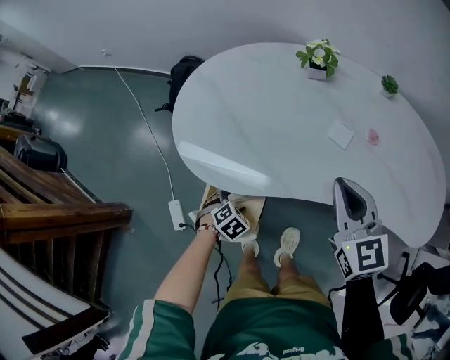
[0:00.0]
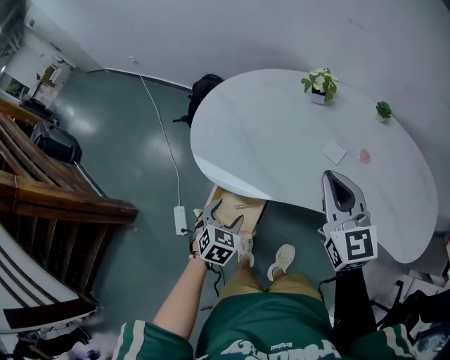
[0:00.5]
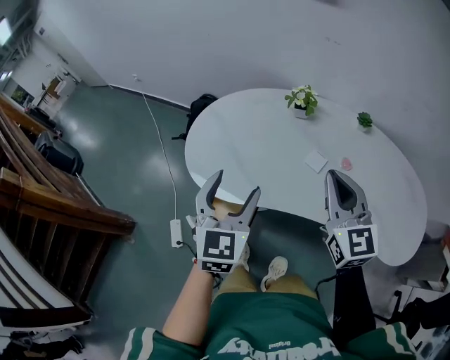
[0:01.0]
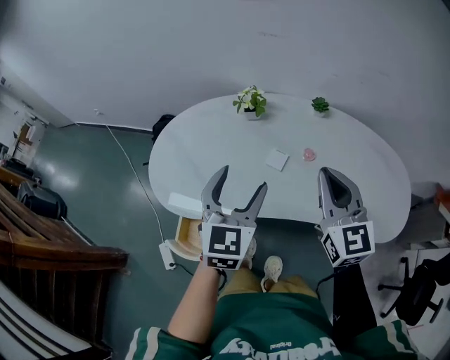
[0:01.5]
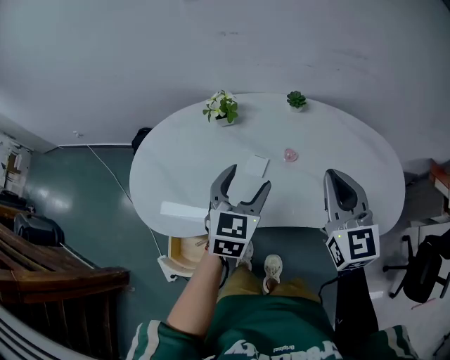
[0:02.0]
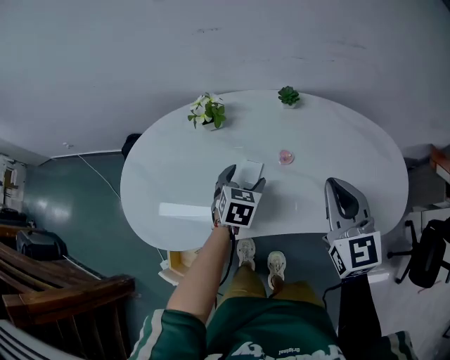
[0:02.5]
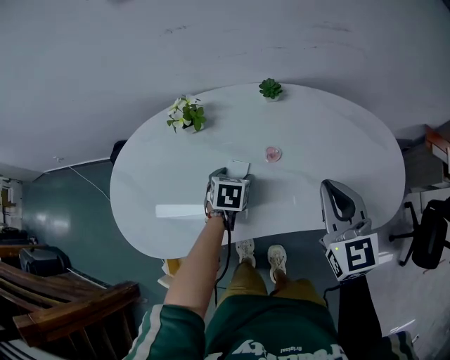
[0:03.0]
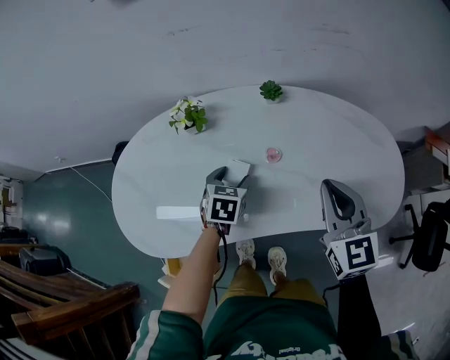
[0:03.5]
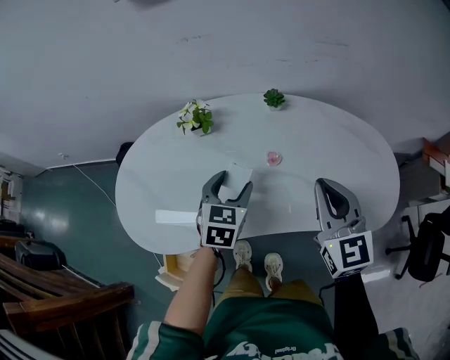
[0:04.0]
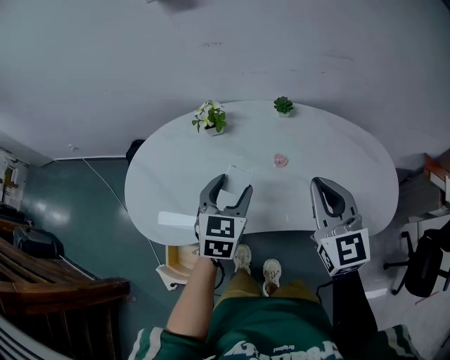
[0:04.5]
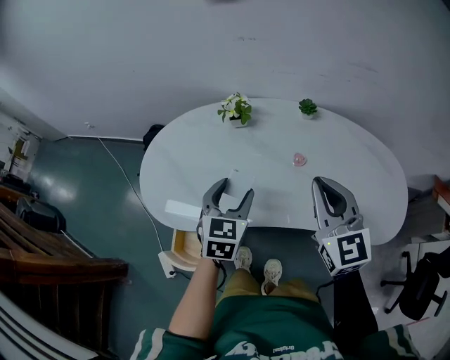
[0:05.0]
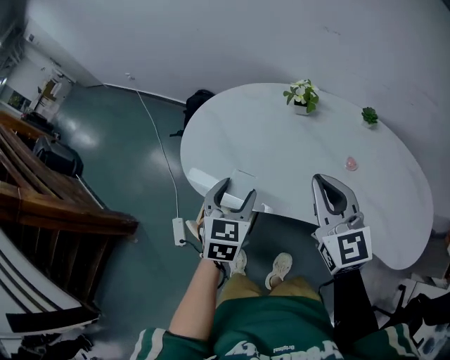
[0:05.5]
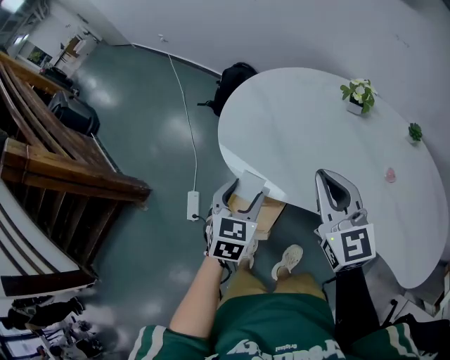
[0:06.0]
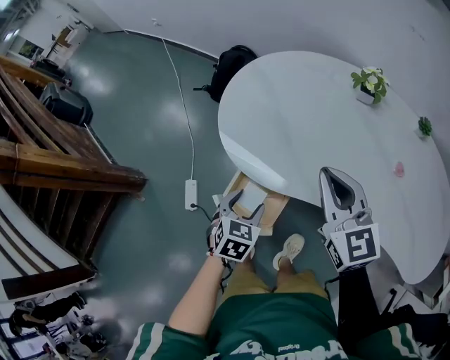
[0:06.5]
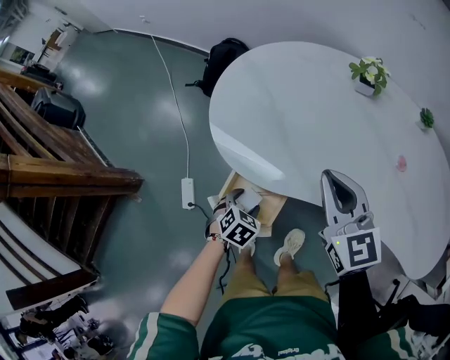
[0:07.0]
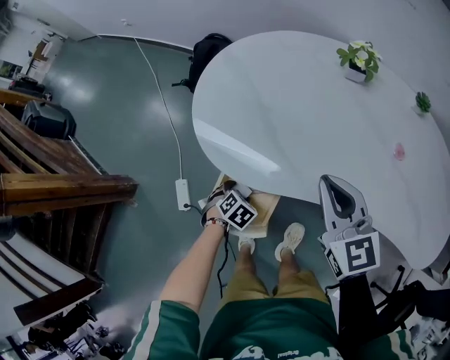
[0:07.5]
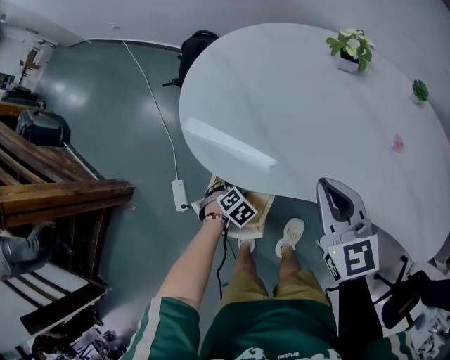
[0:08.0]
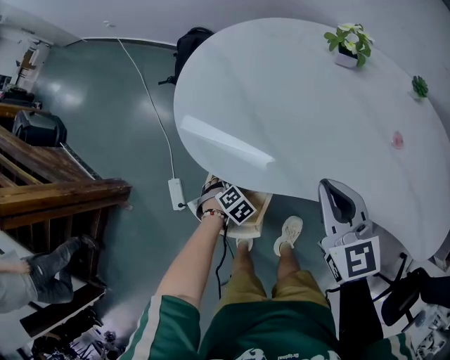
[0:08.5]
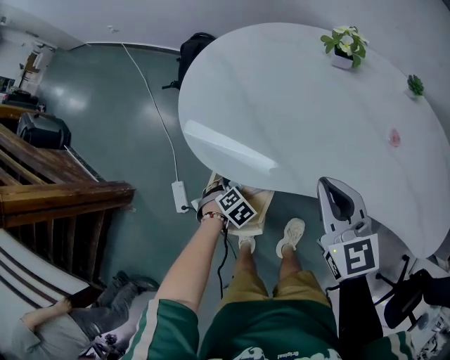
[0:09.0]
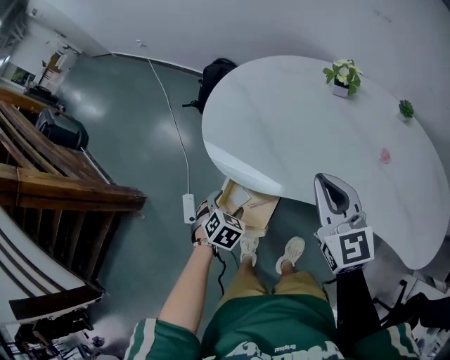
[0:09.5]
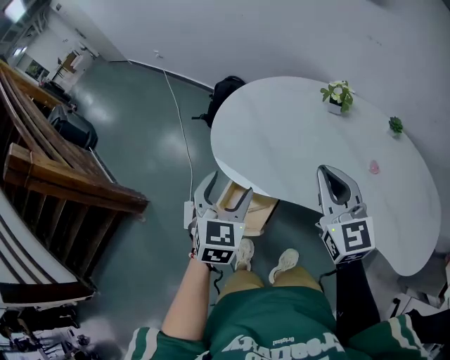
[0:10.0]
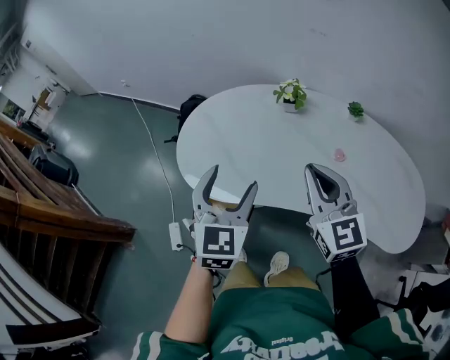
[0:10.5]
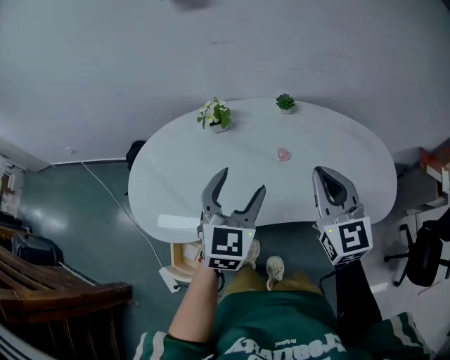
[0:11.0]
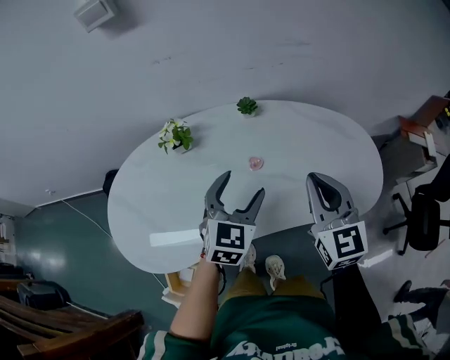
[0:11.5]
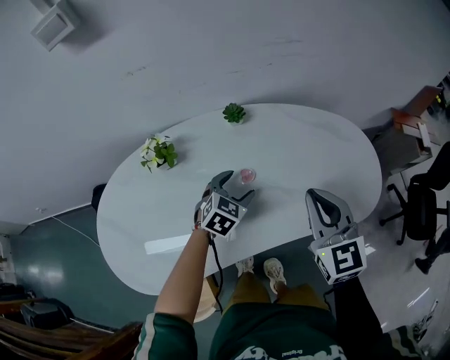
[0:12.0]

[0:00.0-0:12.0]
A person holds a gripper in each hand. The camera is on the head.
0:00.0 to 0:02.0: The left gripper moves upward, to the right and forward, roughly 50 cm, and tips its fingers upward by some 50 degrees; the right gripper shifts approximately 25 cm to the right and upward, and rotates approximately 20 degrees.
0:02.0 to 0:04.0: The left gripper goes some 10 cm downward and forward.
0:04.0 to 0:06.0: The left gripper moves roughly 40 cm, and turns by approximately 30 degrees, while the right gripper ends up some 35 cm from where it was, and swivels approximately 40 degrees.
0:06.0 to 0:08.0: The right gripper shifts some 10 cm downward, while the left gripper heads downward, covering roughly 30 cm, and angles its fingers downward, by about 40 degrees.
0:08.0 to 0:10.0: The left gripper is displaced upward by some 40 cm, and tilts its fingers approximately 50 degrees upward; the right gripper shifts some 15 cm upward.
0:10.0 to 0:12.0: The left gripper ends up some 50 cm from where it was, and rotates some 70 degrees. Meanwhile the right gripper moves about 35 cm, and turns by roughly 50 degrees.

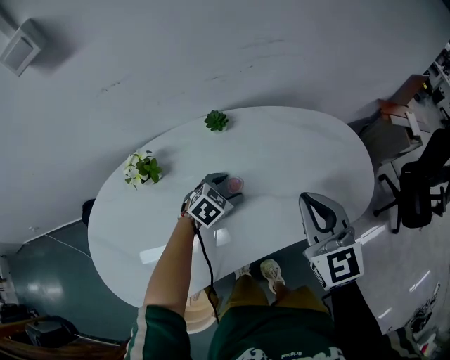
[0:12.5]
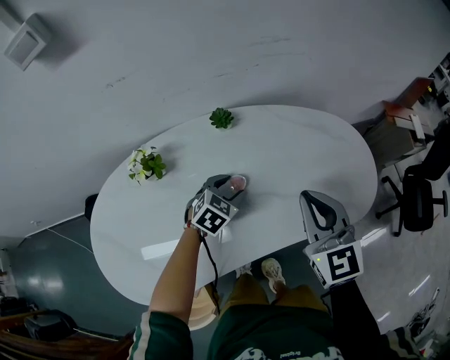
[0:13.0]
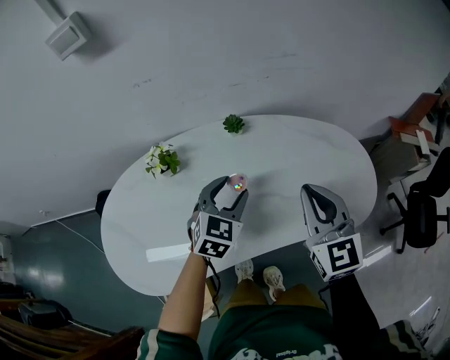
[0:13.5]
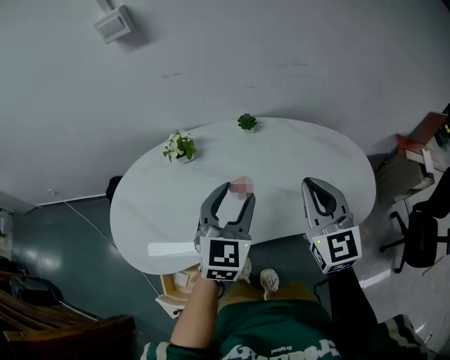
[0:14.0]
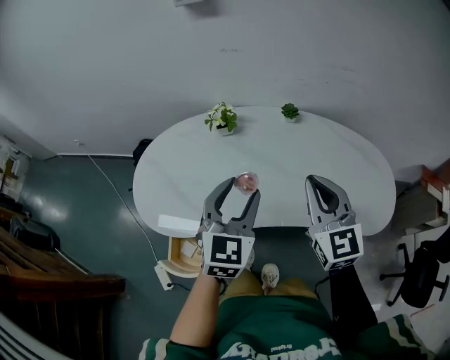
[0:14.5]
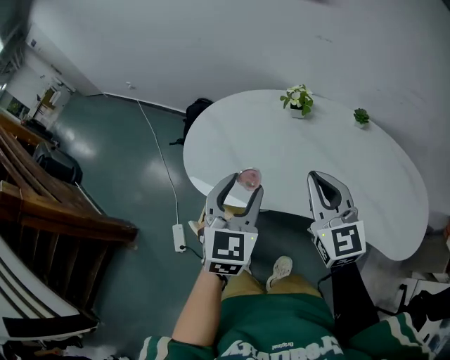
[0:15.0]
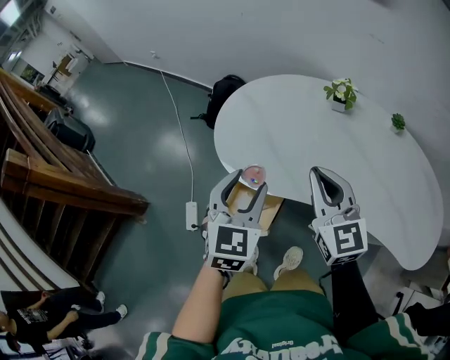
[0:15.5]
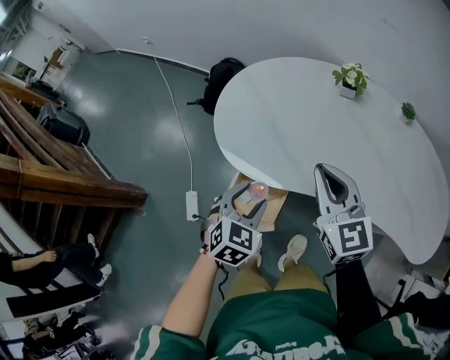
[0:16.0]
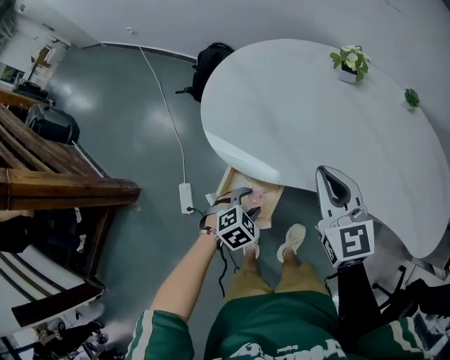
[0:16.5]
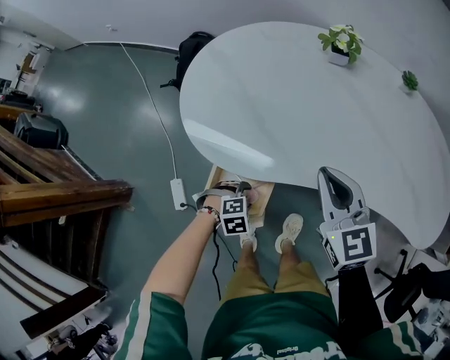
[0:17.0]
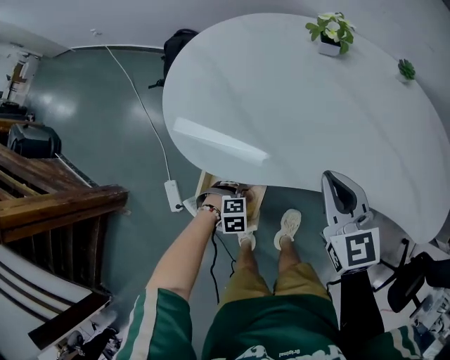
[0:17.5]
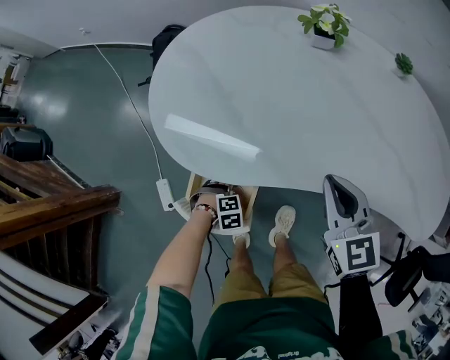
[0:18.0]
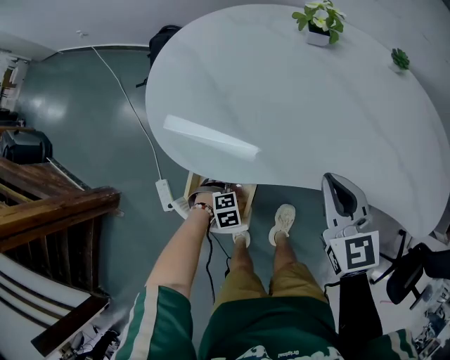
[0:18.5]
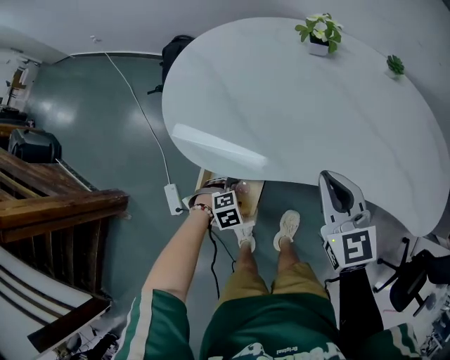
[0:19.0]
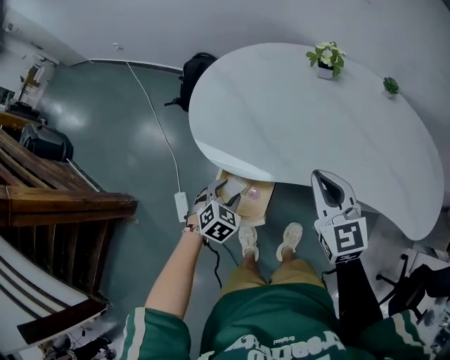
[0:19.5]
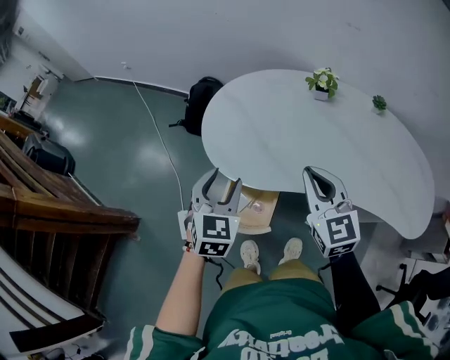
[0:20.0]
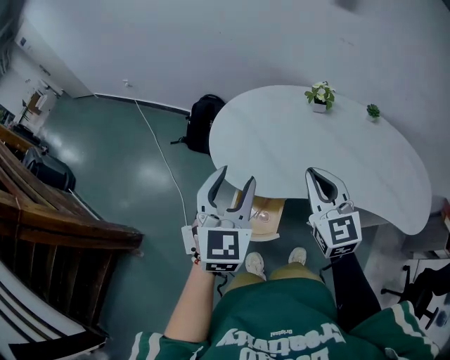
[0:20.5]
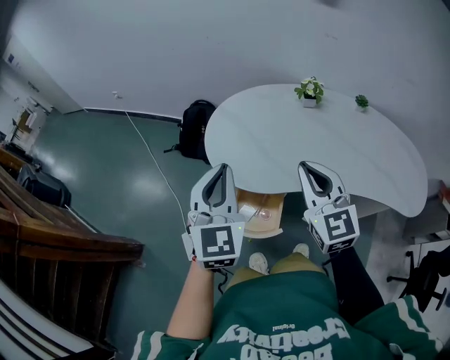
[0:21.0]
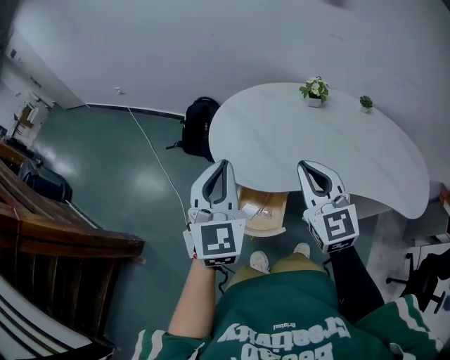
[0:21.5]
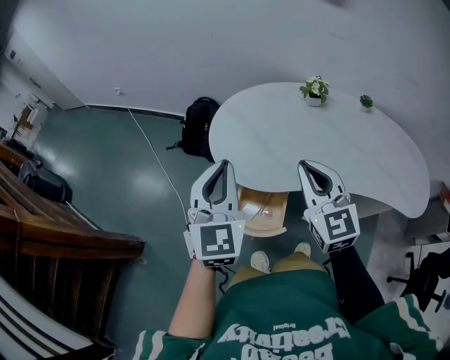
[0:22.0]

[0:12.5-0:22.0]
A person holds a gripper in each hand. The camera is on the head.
0:12.5 to 0:14.5: The right gripper shifts by some 15 cm, and changes its angle by some 20 degrees. Meanwhile the left gripper is displaced upward by approximately 30 cm, and points its fingers about 40 degrees further upward.
0:14.5 to 0:16.5: The right gripper moves roughly 30 cm, and changes its angle by approximately 30 degrees. Meanwhile the left gripper goes about 35 cm downward, and tips its fingers downward by some 50 degrees.
0:16.5 to 0:18.0: The right gripper shifts by about 10 cm; the left gripper travels downward by some 20 cm, and rotates about 40 degrees.
0:18.0 to 0:20.0: The left gripper is displaced upward by about 40 cm, and tips its fingers upward by roughly 60 degrees. Meanwhile the right gripper heads upward, covering roughly 15 cm.
0:20.0 to 0:22.0: The left gripper is displaced upward by about 15 cm, turns by roughly 20 degrees, and closes its fingers. Meanwhile the right gripper is displaced to the left and upward by some 10 cm.

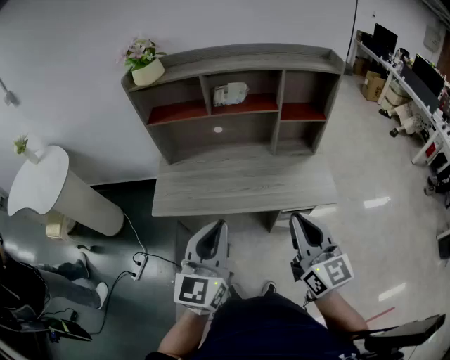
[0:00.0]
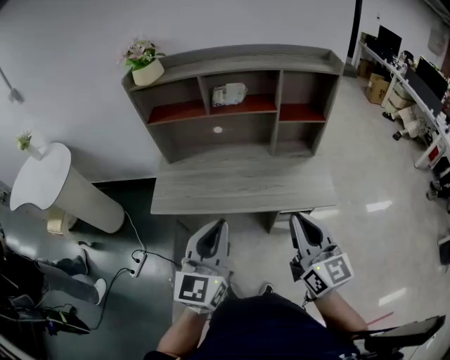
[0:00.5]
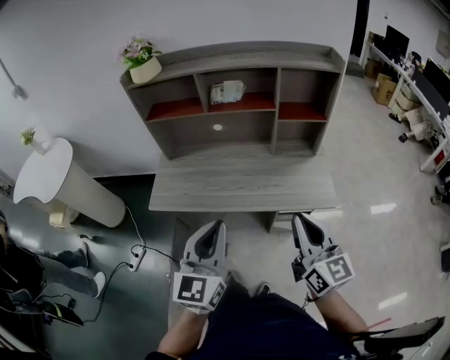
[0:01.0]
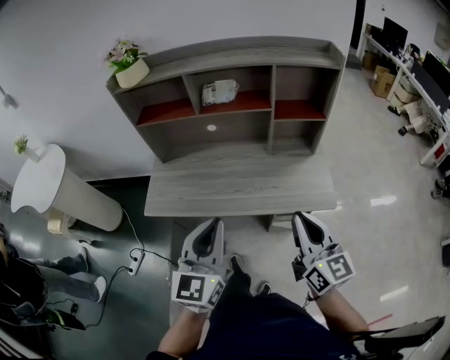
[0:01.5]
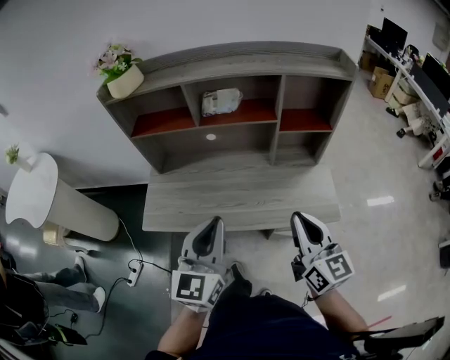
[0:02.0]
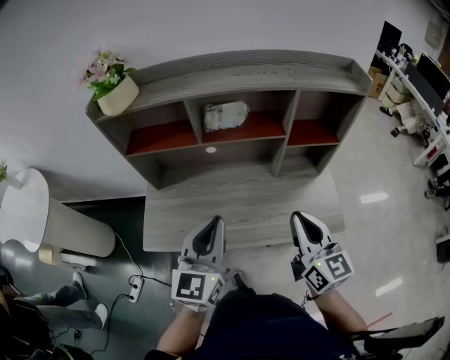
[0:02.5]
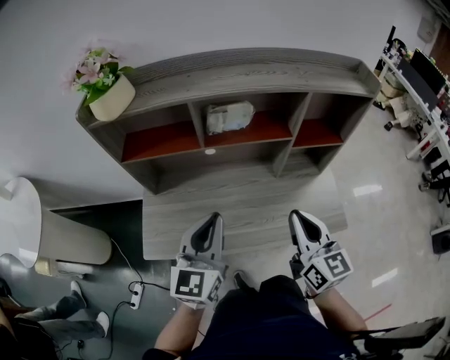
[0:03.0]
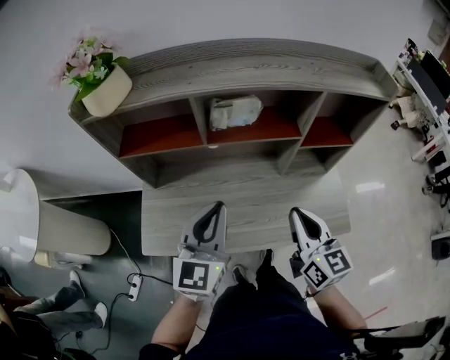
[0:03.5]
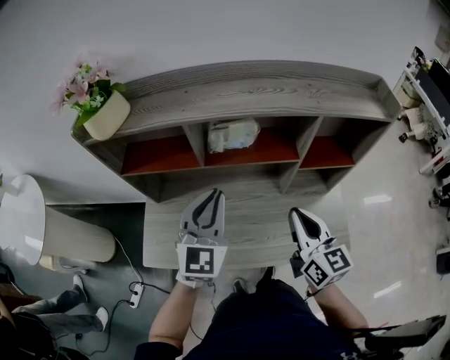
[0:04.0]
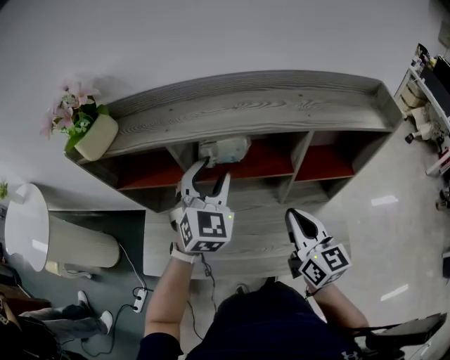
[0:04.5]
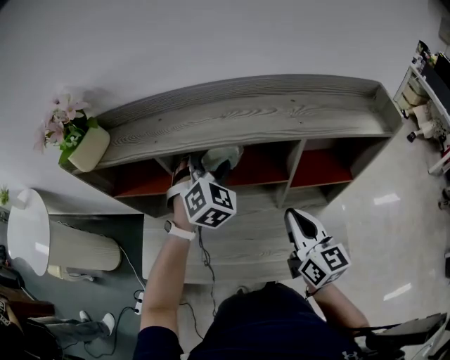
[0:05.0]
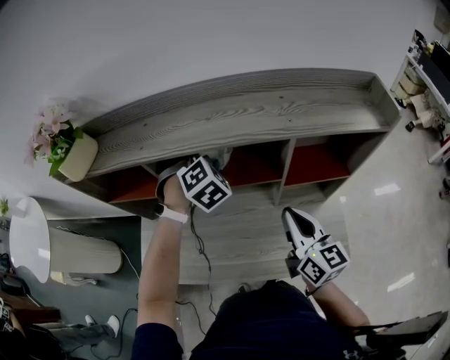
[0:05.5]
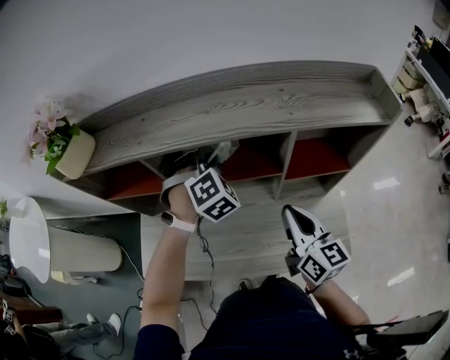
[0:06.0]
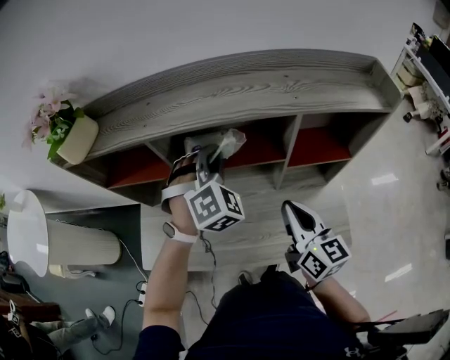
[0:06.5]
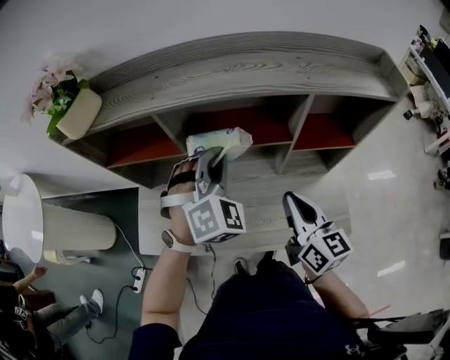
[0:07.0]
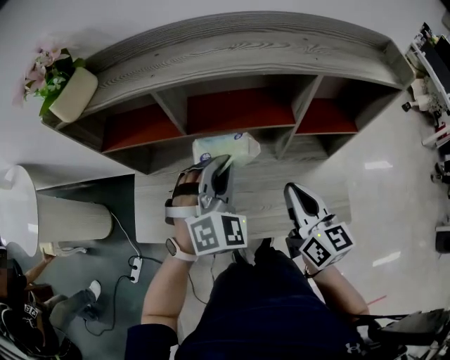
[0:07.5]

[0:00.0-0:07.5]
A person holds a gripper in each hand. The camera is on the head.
0:00.0 to 0:02.0: The left gripper is displaced forward by roughly 15 cm, while the right gripper moves forward and to the right, about 15 cm.
0:02.0 to 0:04.0: Both grippers move forward, roughly 25 cm.
0:04.0 to 0:05.5: The right gripper heads forward and to the right, covering roughly 10 cm, while the left gripper travels forward and to the right by about 20 cm, tips its fingers downward by approximately 40 degrees, and opens up.
0:05.5 to 0:07.5: The right gripper heads backward and to the left, covering roughly 10 cm. Meanwhile the left gripper heads backward, covering approximately 20 cm, turns by approximately 20 degrees, and closes up.
